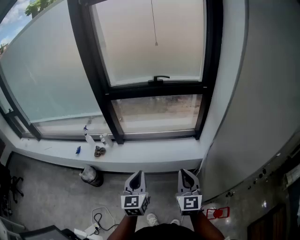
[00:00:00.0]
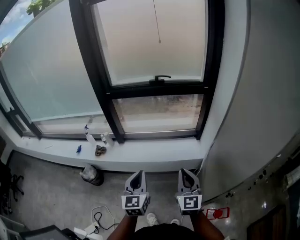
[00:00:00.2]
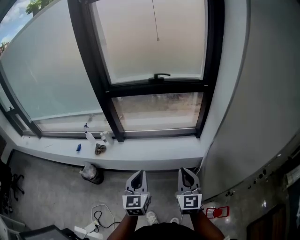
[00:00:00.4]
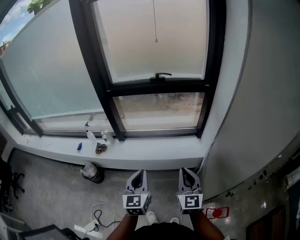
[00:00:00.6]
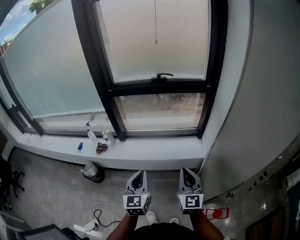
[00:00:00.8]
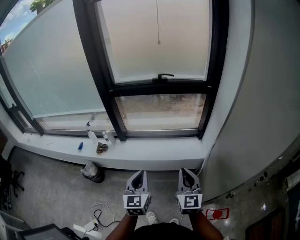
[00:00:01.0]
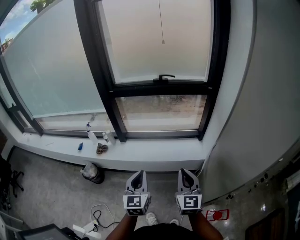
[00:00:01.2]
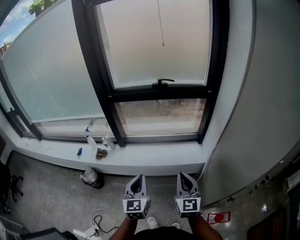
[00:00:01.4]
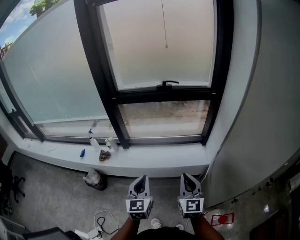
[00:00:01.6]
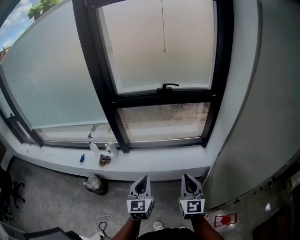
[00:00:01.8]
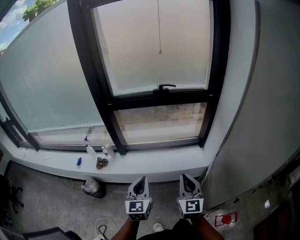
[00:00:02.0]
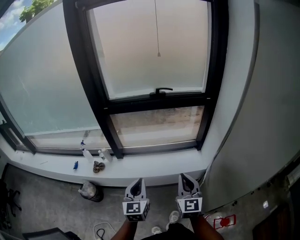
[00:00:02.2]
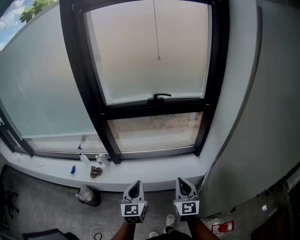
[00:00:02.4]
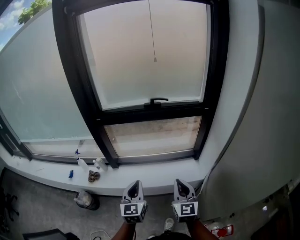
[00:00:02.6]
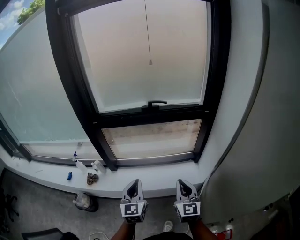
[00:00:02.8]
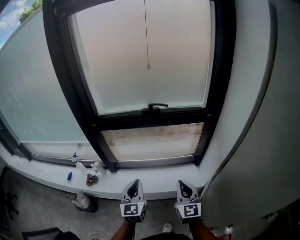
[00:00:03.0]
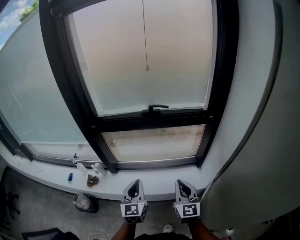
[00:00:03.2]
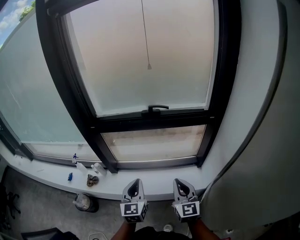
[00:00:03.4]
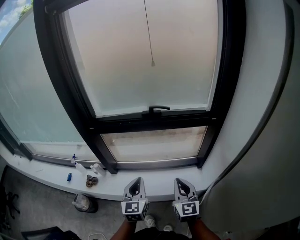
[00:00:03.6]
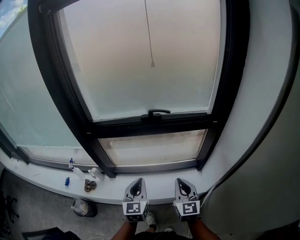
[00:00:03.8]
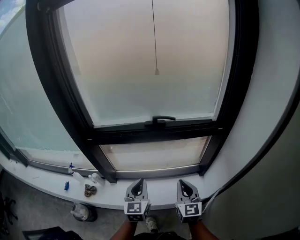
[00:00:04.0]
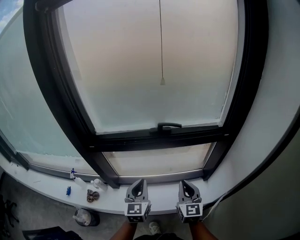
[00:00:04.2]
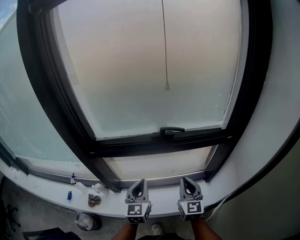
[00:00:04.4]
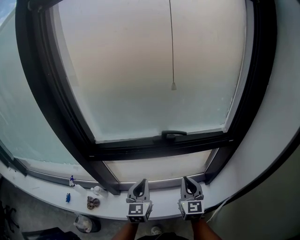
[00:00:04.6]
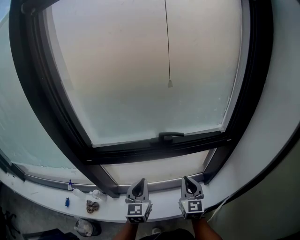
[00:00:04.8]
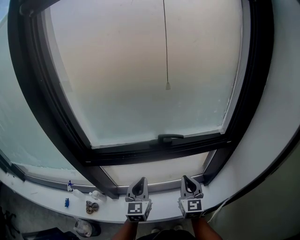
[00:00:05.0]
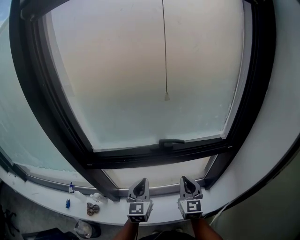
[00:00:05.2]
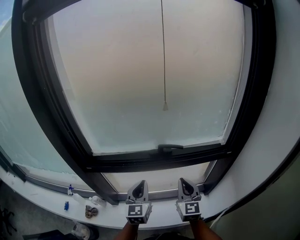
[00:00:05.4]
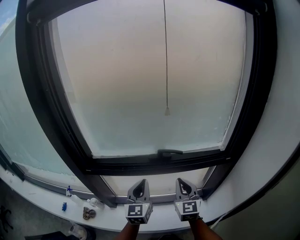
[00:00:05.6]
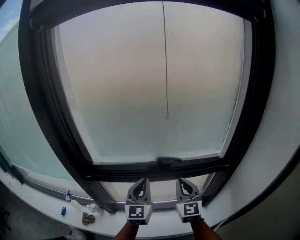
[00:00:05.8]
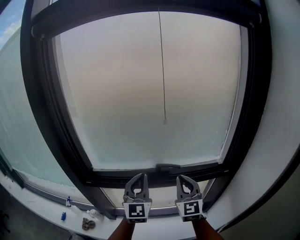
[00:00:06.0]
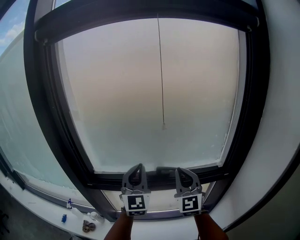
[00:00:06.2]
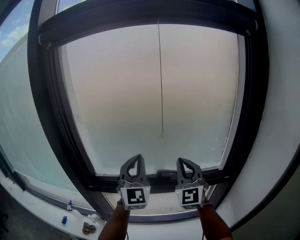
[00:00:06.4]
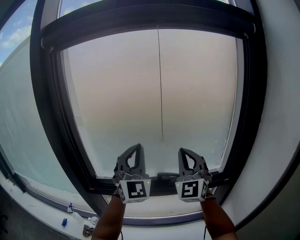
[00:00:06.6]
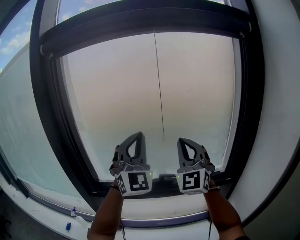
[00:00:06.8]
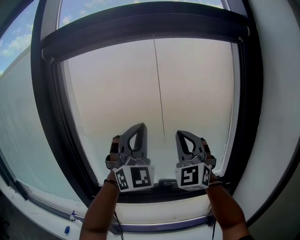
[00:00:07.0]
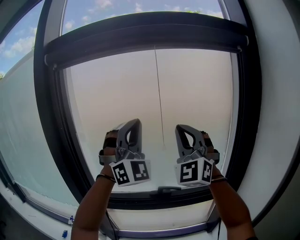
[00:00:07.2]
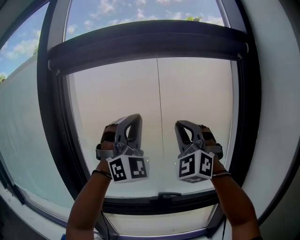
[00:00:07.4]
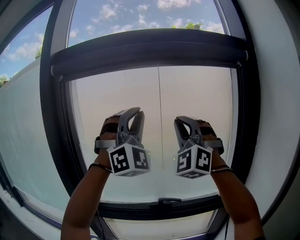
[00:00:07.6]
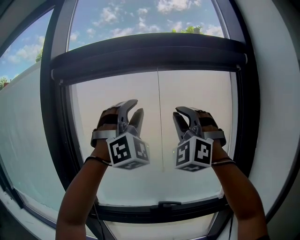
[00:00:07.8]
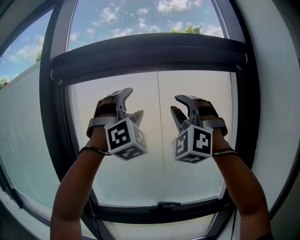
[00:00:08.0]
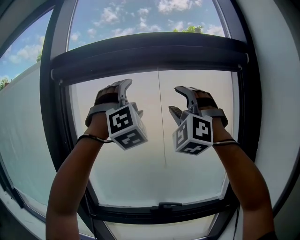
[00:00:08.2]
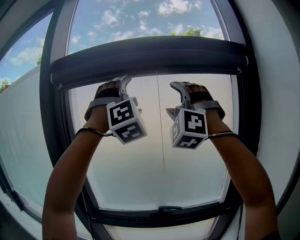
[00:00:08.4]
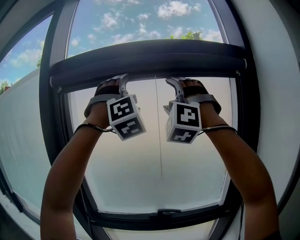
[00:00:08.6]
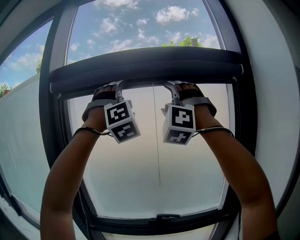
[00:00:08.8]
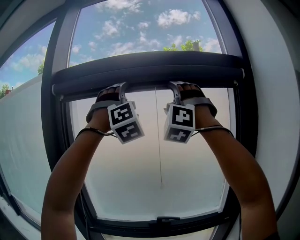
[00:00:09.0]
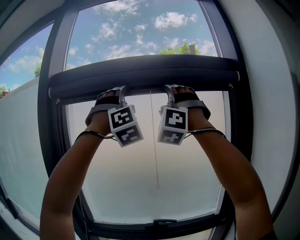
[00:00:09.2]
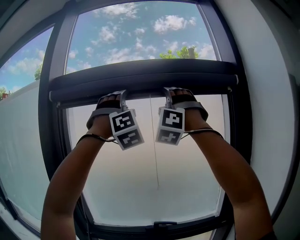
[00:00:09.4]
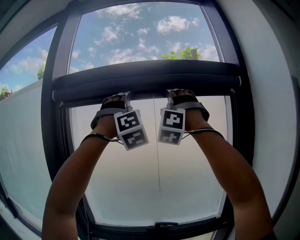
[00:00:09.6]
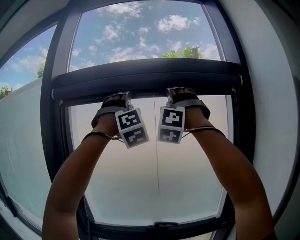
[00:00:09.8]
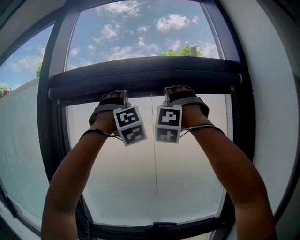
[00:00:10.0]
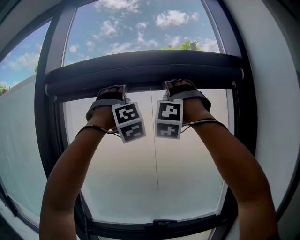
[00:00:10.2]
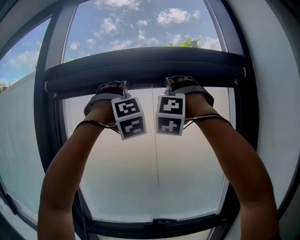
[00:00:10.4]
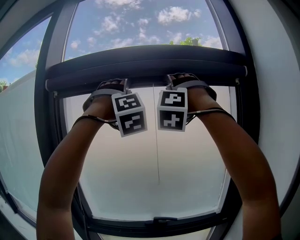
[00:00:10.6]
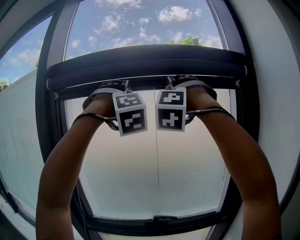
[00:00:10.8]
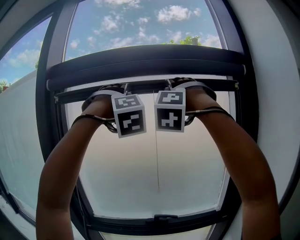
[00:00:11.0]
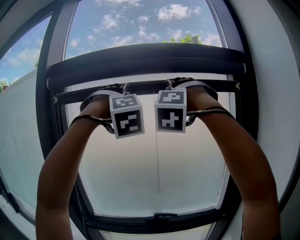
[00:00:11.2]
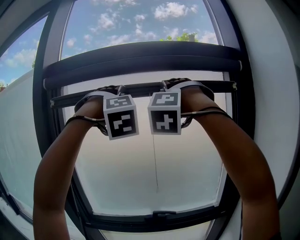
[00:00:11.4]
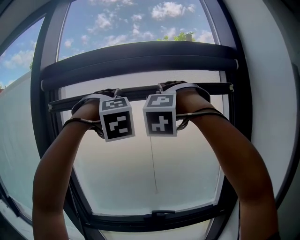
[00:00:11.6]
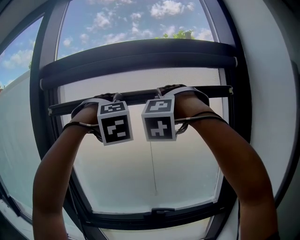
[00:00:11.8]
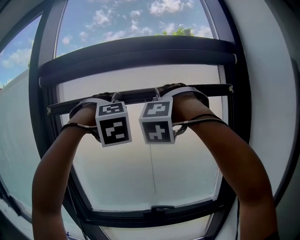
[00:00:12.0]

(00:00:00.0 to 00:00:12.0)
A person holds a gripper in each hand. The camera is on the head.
00:00:00.0 - 00:00:01.6: There are only small adjustments of the grippers.
00:00:01.6 - 00:00:03.0: Both grippers move forward, about 20 cm.
00:00:03.0 - 00:00:04.4: Both grippers travel together forward, about 25 cm.
00:00:04.4 - 00:00:06.0: The grippers both shift upward and forward by roughly 20 cm. The left gripper changes its angle by about 20 degrees.
00:00:06.0 - 00:00:07.6: The grippers both shift upward by roughly 40 cm. The right gripper rolls counterclockwise, seen from behind, by roughly 60 degrees. Meanwhile the left gripper twists roughly 60 degrees clockwise, seen from behind.
00:00:07.6 - 00:00:09.0: The left gripper heads upward and forward, covering approximately 15 cm, rotates some 20 degrees, and opens up; the right gripper is displaced upward by roughly 15 cm, swivels approximately 20 degrees, and opens.
00:00:09.0 - 00:00:10.4: The grippers make only small movements.
00:00:10.4 - 00:00:12.0: The two grippers go approximately 10 cm downward. The left gripper rotates roughly 30 degrees; the right gripper changes its angle by approximately 20 degrees.

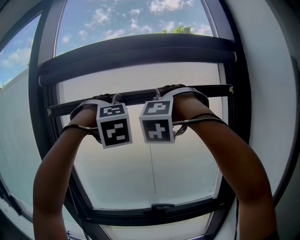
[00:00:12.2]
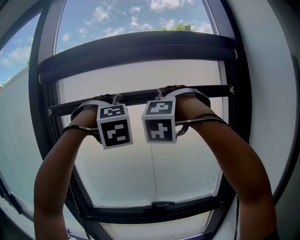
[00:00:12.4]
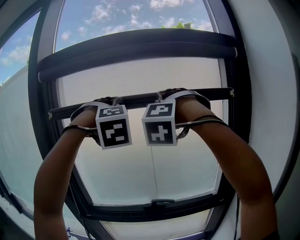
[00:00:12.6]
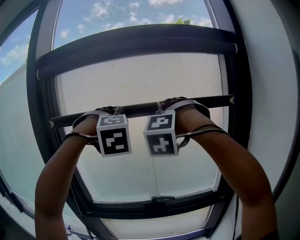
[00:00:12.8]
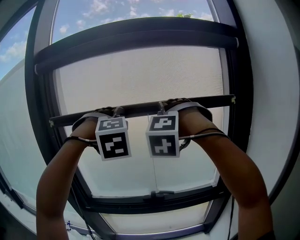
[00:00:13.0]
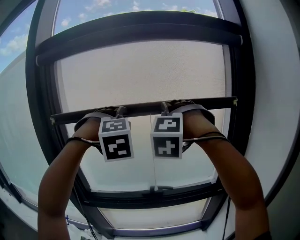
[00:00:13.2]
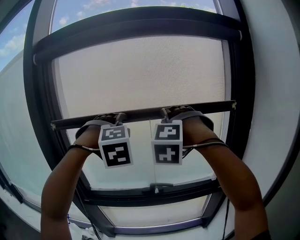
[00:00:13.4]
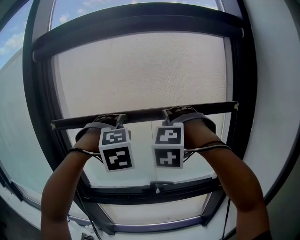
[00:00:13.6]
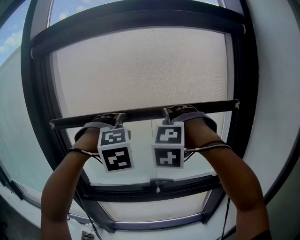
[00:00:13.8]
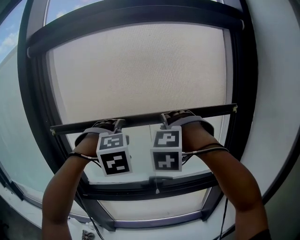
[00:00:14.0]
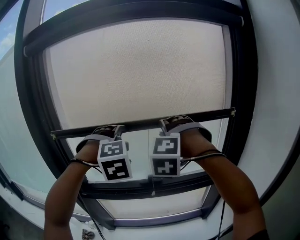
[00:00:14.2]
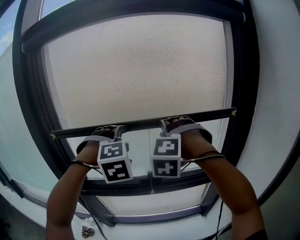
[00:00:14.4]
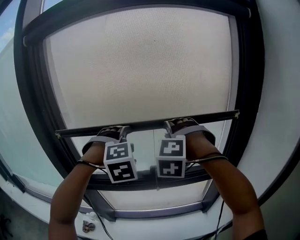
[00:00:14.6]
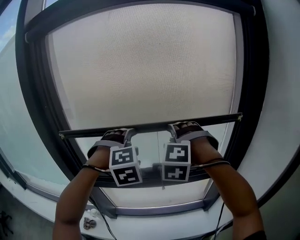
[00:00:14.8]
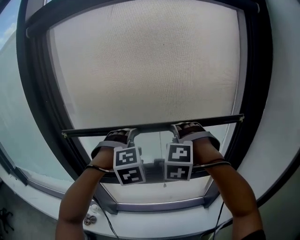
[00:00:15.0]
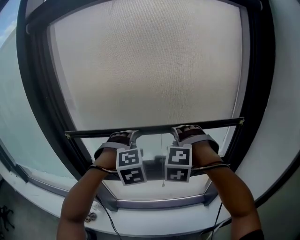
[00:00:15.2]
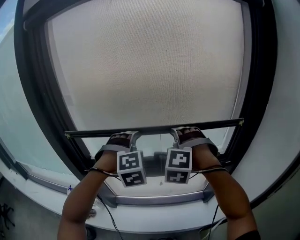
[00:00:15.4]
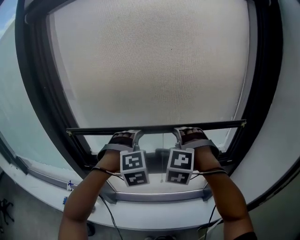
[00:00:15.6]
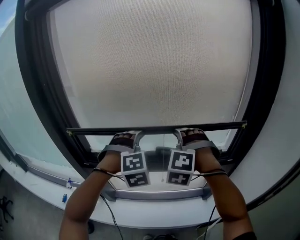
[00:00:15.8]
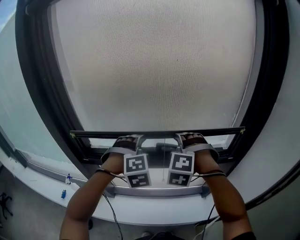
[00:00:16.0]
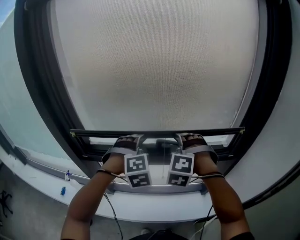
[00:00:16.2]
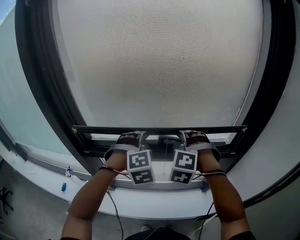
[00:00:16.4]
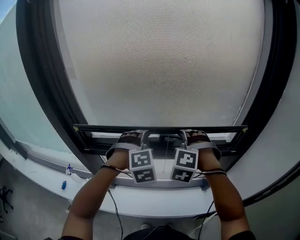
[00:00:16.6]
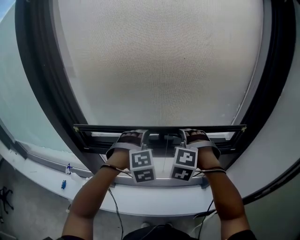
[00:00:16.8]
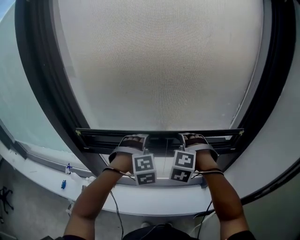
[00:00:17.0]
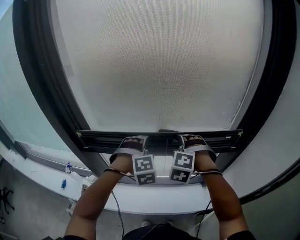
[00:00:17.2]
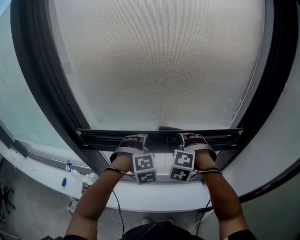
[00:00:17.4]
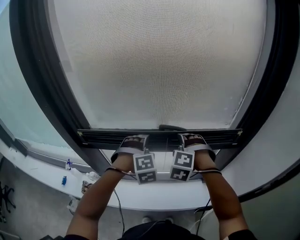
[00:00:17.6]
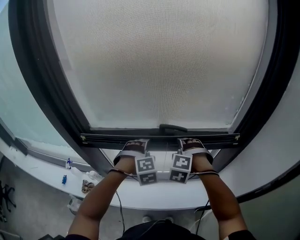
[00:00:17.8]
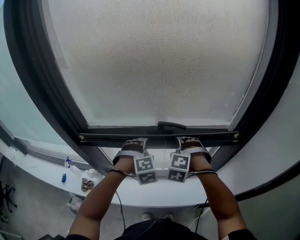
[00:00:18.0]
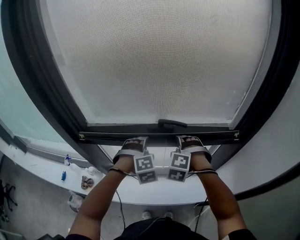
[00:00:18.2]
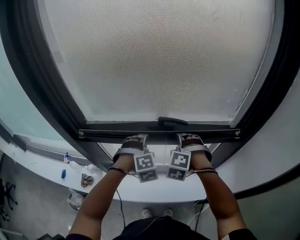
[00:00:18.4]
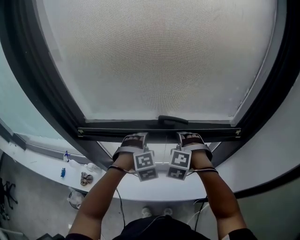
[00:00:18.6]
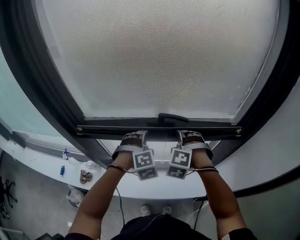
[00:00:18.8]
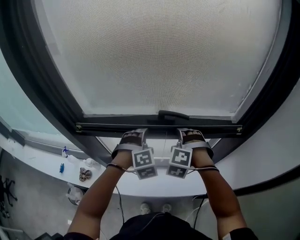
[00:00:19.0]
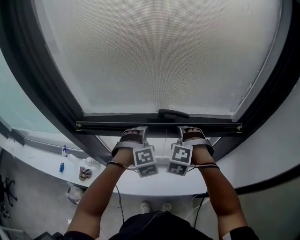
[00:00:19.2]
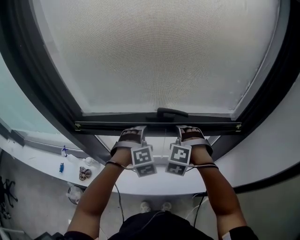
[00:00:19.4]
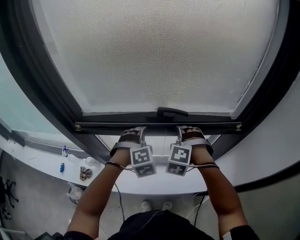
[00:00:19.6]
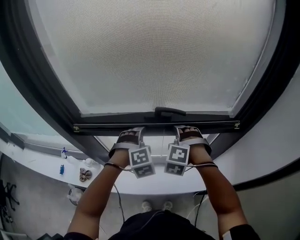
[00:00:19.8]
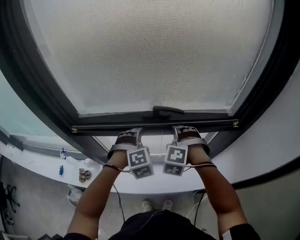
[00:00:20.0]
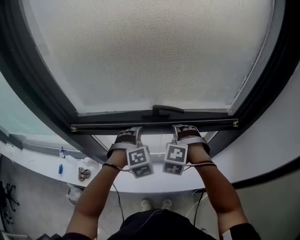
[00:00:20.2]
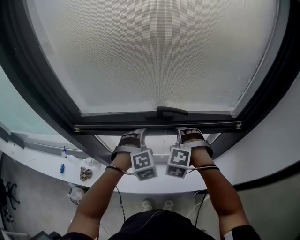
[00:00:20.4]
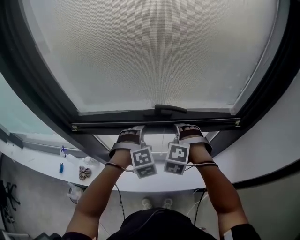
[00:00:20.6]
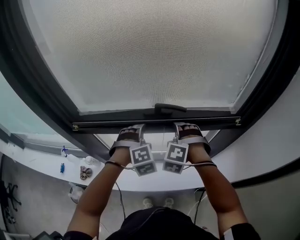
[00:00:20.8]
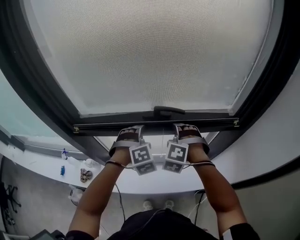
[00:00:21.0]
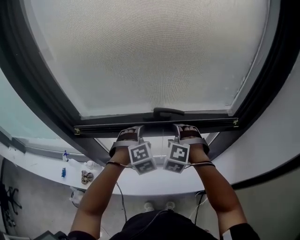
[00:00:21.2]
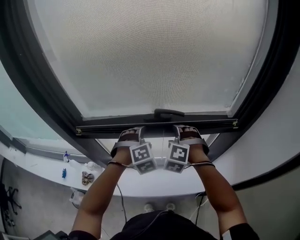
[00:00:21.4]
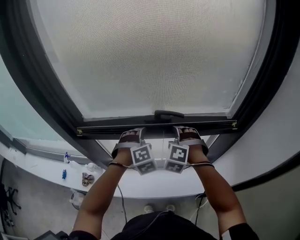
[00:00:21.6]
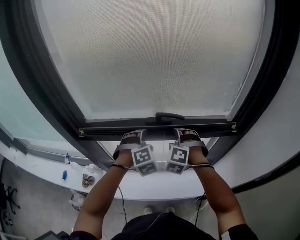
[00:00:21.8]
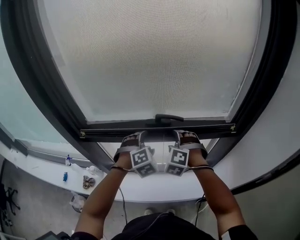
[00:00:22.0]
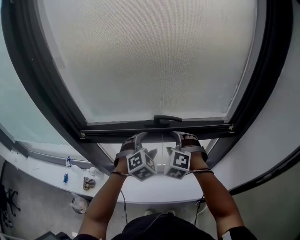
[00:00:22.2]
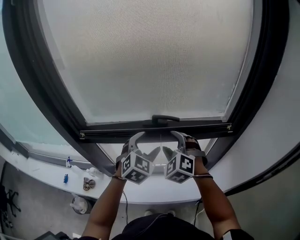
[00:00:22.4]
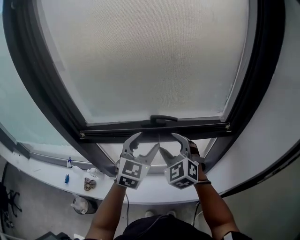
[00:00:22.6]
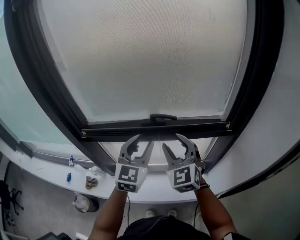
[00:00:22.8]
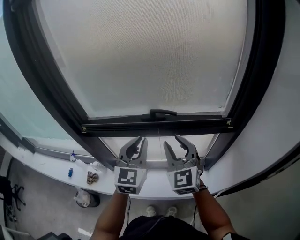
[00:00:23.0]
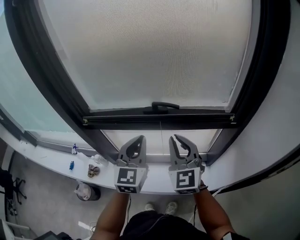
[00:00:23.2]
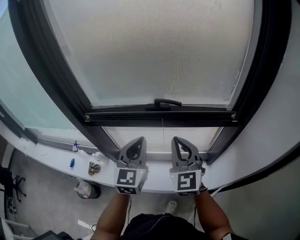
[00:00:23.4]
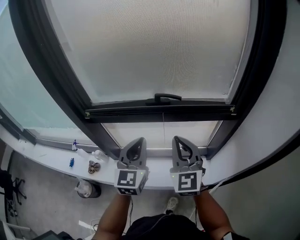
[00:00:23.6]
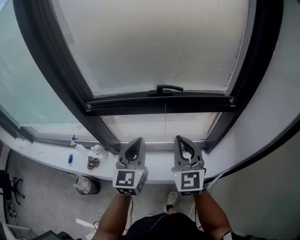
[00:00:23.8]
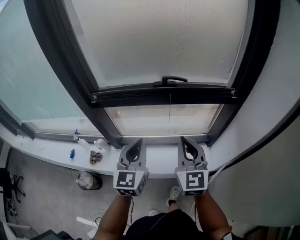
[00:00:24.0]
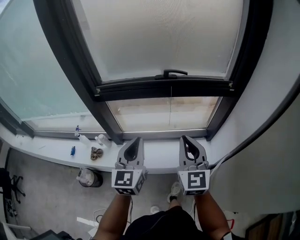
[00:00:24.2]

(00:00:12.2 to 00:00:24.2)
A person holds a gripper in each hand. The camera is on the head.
00:00:12.2 - 00:00:13.8: Both grippers move downward, roughly 20 cm.
00:00:13.8 - 00:00:15.2: Both grippers travel together downward, roughly 15 cm.
00:00:15.2 - 00:00:16.6: The two grippers go about 10 cm downward.
00:00:16.6 - 00:00:18.2: The two grippers go approximately 15 cm downward.
00:00:18.2 - 00:00:19.8: The two grippers keep their place.
00:00:19.8 - 00:00:21.2: The grippers stay close to where they were, moving slightly.
00:00:21.2 - 00:00:22.6: The grippers both shift upward and backward by roughly 15 cm. The right gripper turns by about 40 degrees. The left gripper angles its fingers upward, by about 40 degrees.
00:00:22.6 - 00:00:24.2: The right gripper heads backward, covering some 25 cm, swivels approximately 40 degrees, and closes. The left gripper goes about 25 cm backward and to the left, swivels roughly 30 degrees, and closes up.
